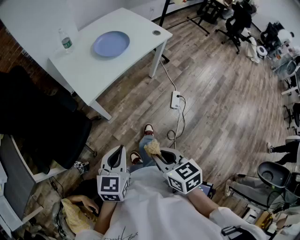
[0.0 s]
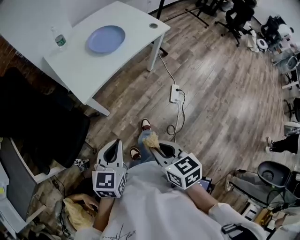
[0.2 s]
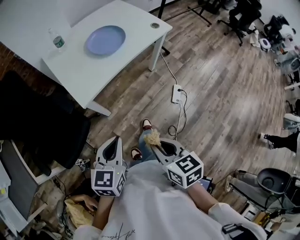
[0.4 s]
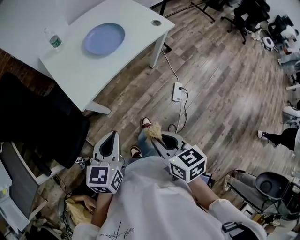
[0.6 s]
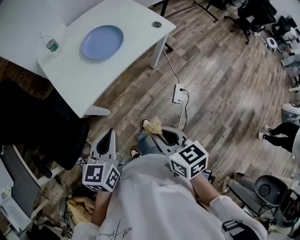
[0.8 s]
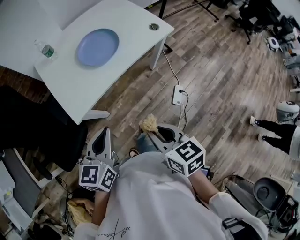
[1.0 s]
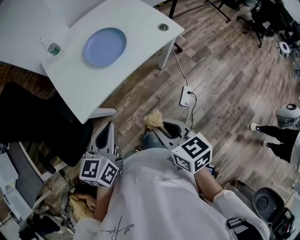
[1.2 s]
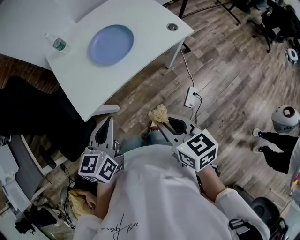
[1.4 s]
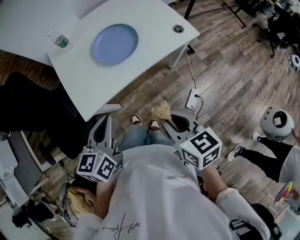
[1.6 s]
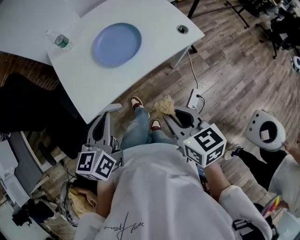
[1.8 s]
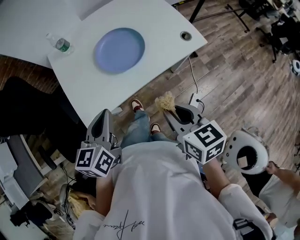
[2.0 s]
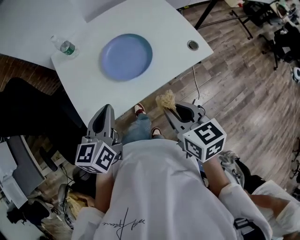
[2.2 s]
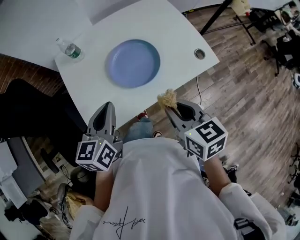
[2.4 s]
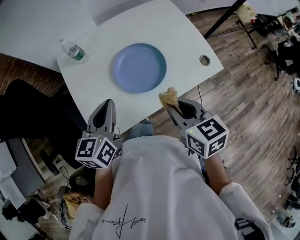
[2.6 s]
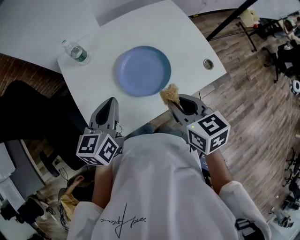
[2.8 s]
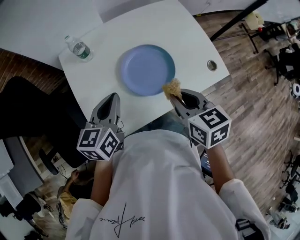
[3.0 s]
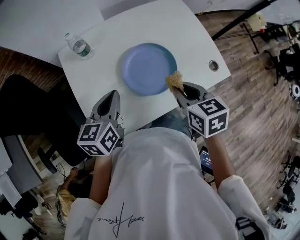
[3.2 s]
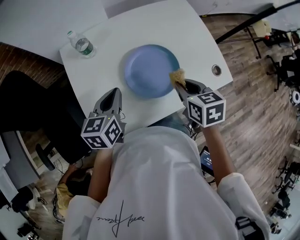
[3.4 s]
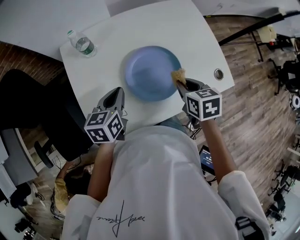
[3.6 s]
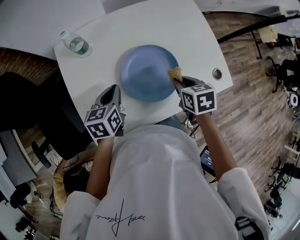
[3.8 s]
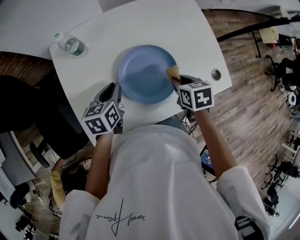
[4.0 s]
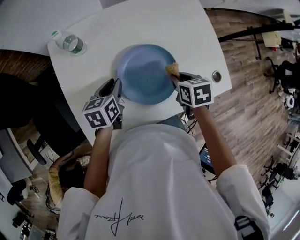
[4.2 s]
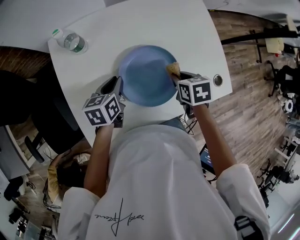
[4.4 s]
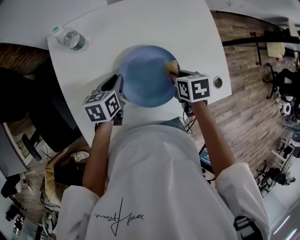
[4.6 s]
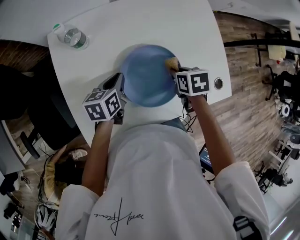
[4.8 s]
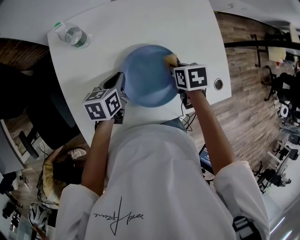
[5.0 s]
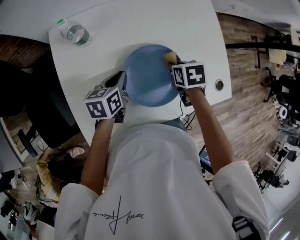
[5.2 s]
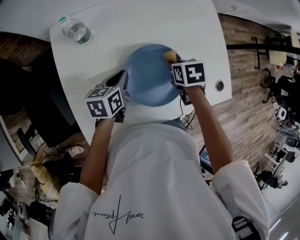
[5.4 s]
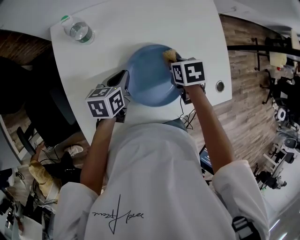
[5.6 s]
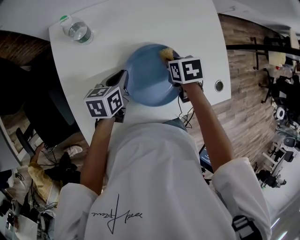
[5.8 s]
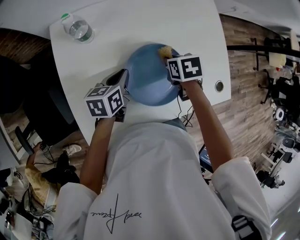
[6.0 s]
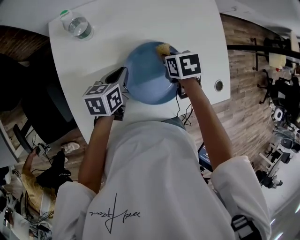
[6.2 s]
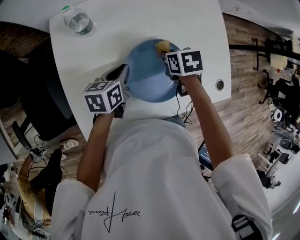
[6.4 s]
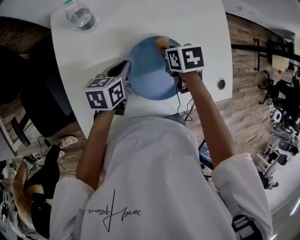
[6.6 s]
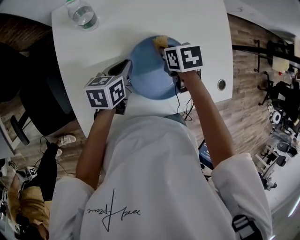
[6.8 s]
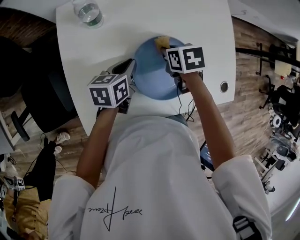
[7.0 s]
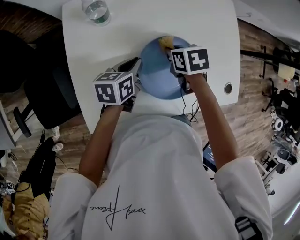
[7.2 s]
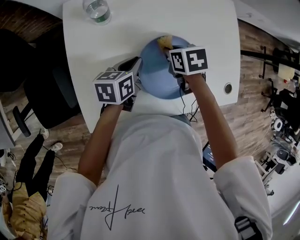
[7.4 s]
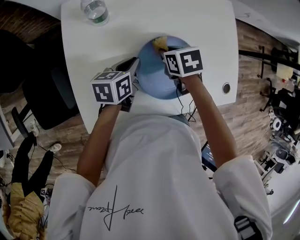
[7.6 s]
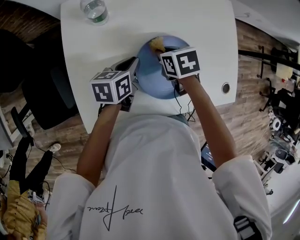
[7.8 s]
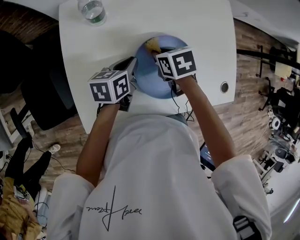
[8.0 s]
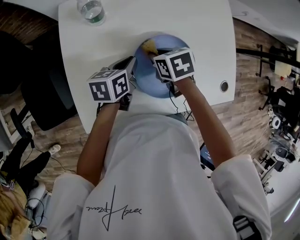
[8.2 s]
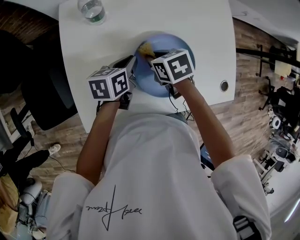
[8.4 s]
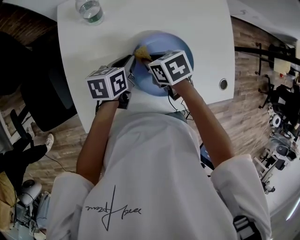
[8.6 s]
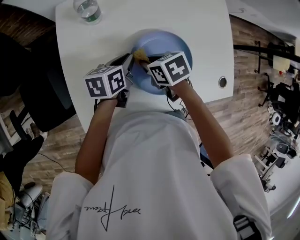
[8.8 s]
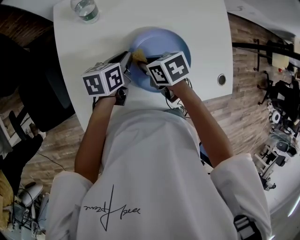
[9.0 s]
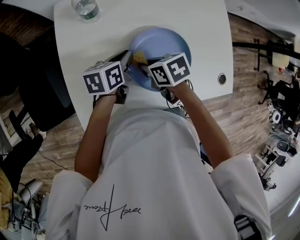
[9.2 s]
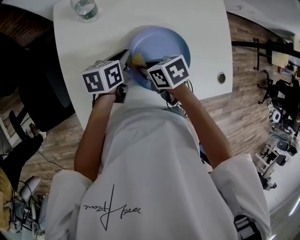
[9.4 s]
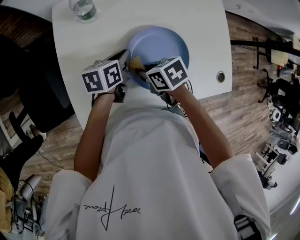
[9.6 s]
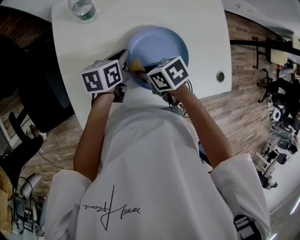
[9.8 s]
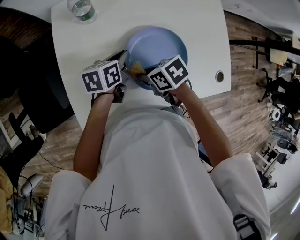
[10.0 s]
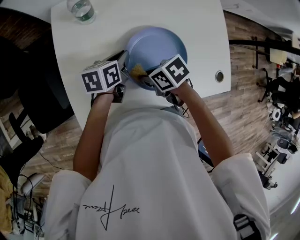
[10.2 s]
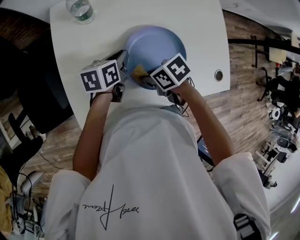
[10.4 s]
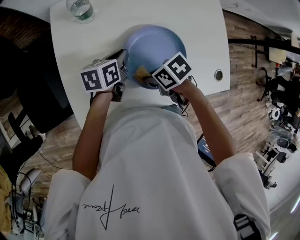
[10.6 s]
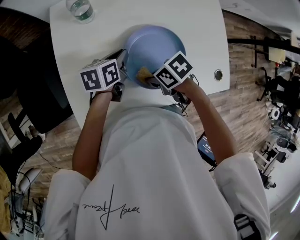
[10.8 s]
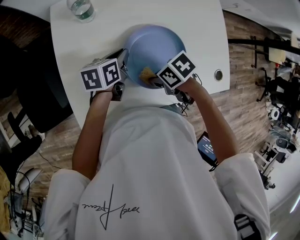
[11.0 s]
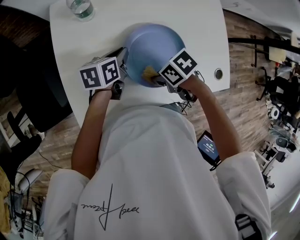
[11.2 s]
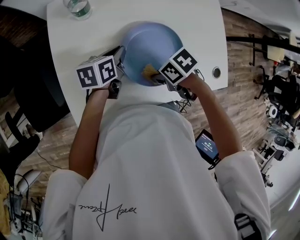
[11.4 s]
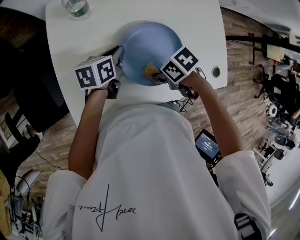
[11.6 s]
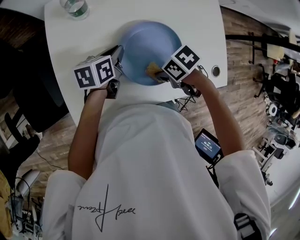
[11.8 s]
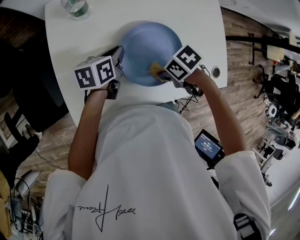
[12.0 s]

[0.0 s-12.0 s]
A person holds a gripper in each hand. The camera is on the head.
0.0 to 1.6 s: The right gripper travels forward and to the right by approximately 35 cm; the left gripper goes approximately 30 cm forward, and rotates roughly 20 degrees.
1.6 to 3.0 s: The grippers both shift forward by some 25 cm.
3.0 to 4.4 s: The two grippers go some 20 cm downward and forward. The right gripper turns by about 30 degrees. The left gripper turns by roughly 20 degrees.
4.4 to 6.0 s: The right gripper is displaced forward and to the left by about 10 cm.
6.0 to 7.6 s: The right gripper is displaced to the left by some 10 cm.
7.6 to 9.0 s: The right gripper goes some 10 cm backward and to the left.
9.0 to 10.4 s: The right gripper changes place by about 5 cm.
10.4 to 12.0 s: The right gripper changes place by some 10 cm.

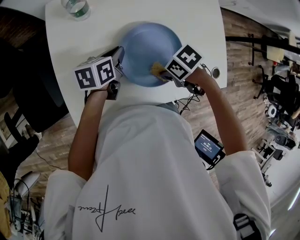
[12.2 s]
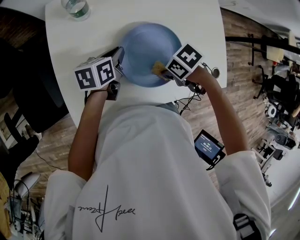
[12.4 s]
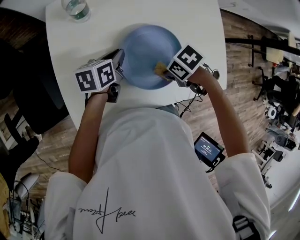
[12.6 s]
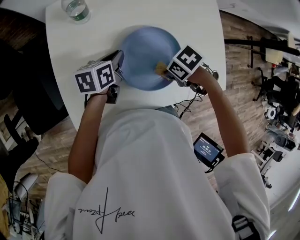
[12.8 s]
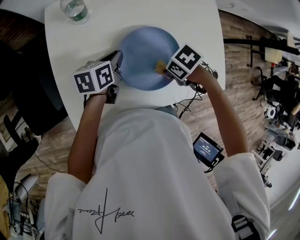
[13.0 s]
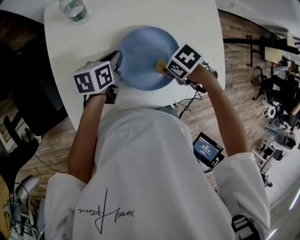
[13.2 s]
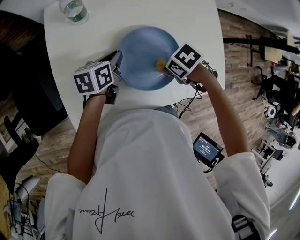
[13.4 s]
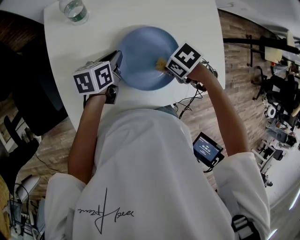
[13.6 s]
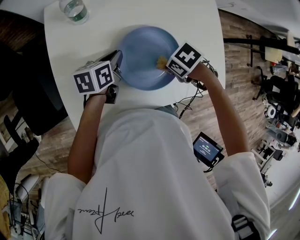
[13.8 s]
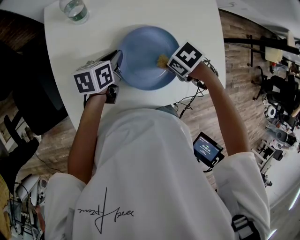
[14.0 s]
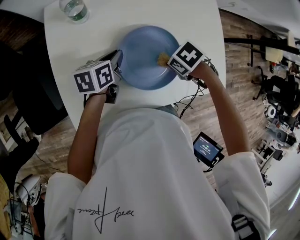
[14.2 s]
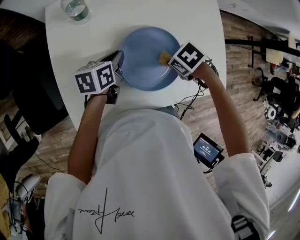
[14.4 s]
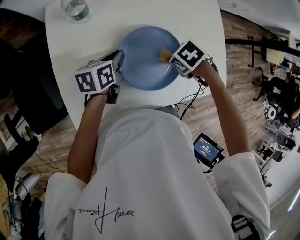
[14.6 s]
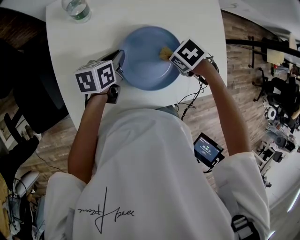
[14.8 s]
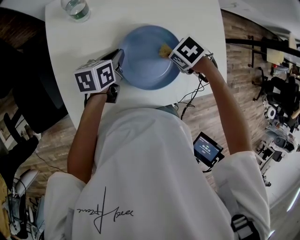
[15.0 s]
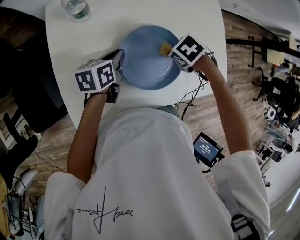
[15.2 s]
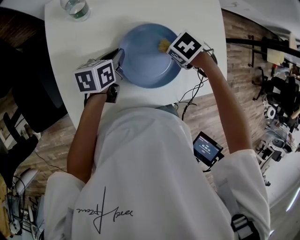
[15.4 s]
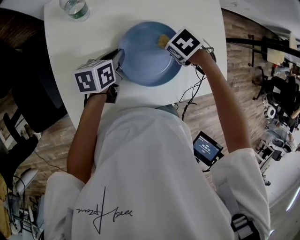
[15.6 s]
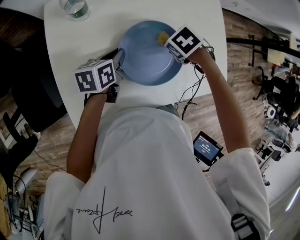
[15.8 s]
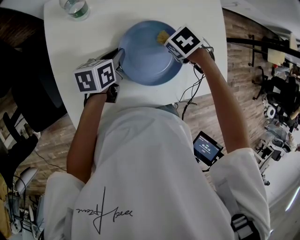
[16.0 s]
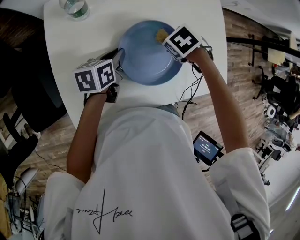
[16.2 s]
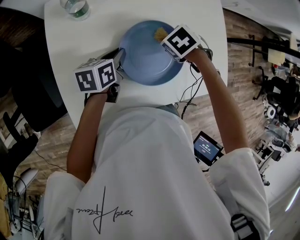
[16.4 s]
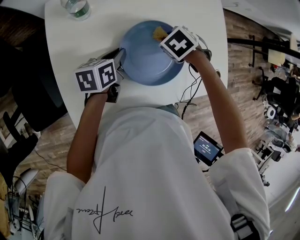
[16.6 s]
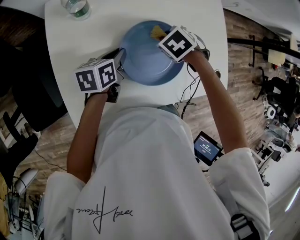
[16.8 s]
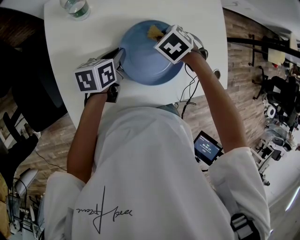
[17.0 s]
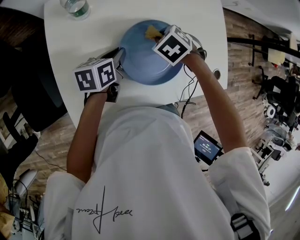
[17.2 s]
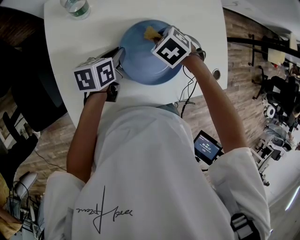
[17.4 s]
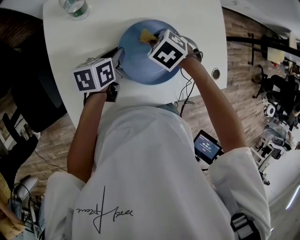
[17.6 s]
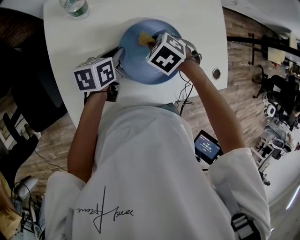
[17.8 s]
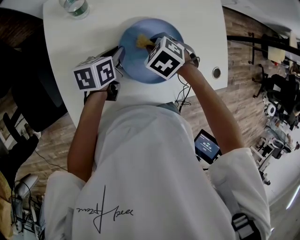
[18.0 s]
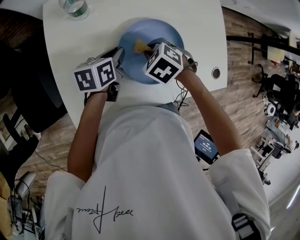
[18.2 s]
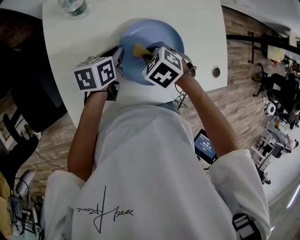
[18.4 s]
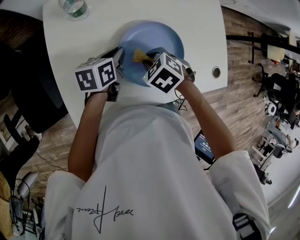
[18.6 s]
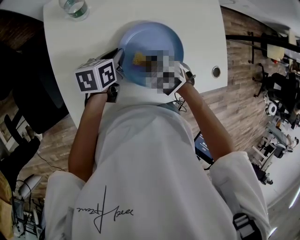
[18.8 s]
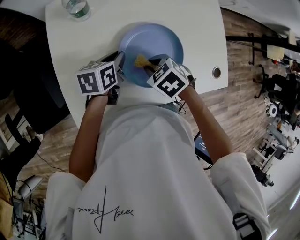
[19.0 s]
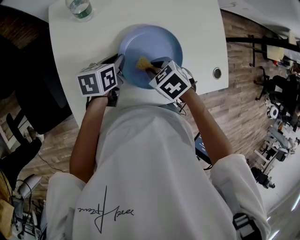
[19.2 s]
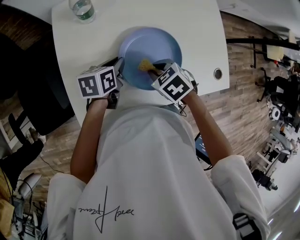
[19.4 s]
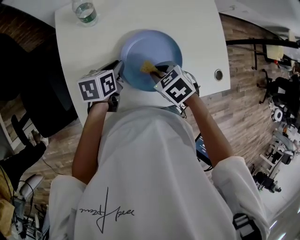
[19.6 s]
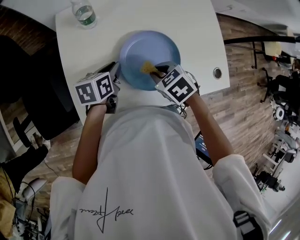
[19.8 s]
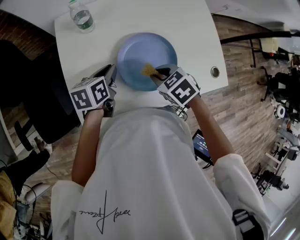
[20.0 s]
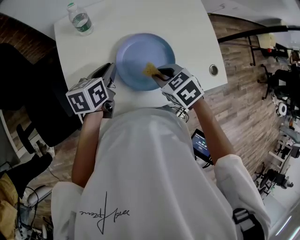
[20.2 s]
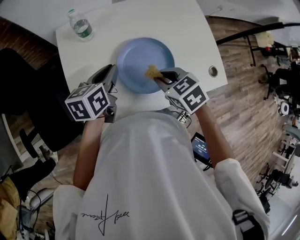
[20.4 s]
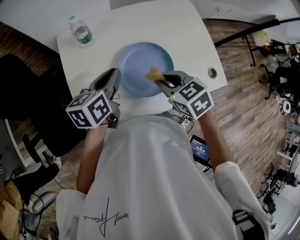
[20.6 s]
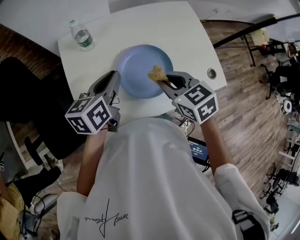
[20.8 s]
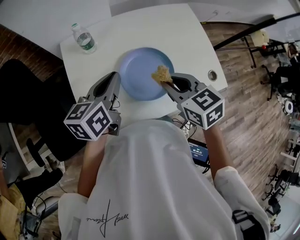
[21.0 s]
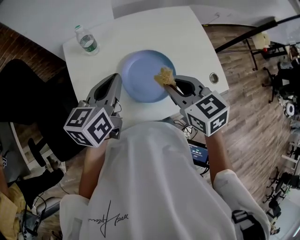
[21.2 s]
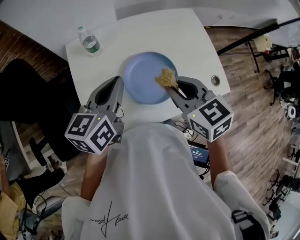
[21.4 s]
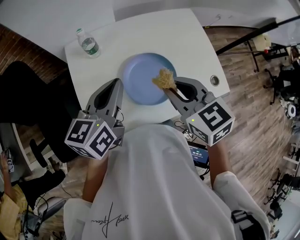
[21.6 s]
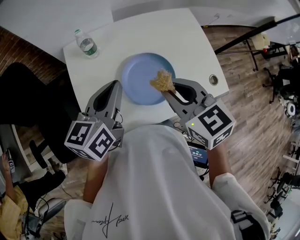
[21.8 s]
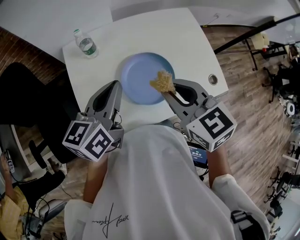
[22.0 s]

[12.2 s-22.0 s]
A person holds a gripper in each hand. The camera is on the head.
12.2 to 13.6 s: The right gripper shifts by some 5 cm.
13.6 to 15.0 s: The right gripper moves some 5 cm.
15.0 to 16.4 s: The right gripper shifts by roughly 5 cm.
16.4 to 17.8 s: The right gripper ends up some 5 cm from where it was.
17.8 to 19.2 s: The right gripper changes place by approximately 10 cm.
19.2 to 20.6 s: The grippers both shift upward by about 15 cm. The right gripper changes its angle by about 30 degrees.
20.6 to 22.0 s: Both grippers move upward, approximately 10 cm. The right gripper swivels roughly 20 degrees.

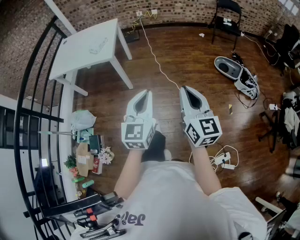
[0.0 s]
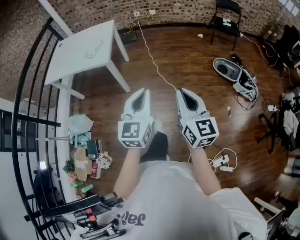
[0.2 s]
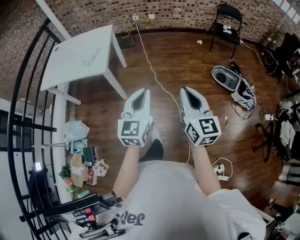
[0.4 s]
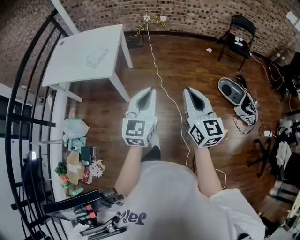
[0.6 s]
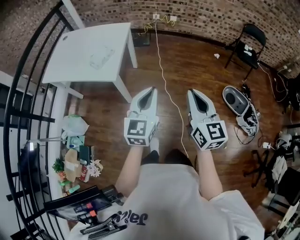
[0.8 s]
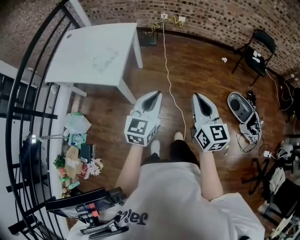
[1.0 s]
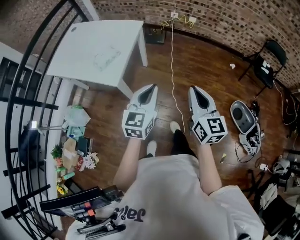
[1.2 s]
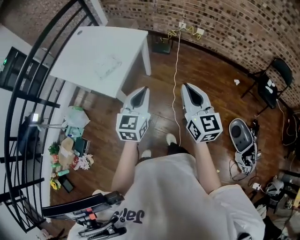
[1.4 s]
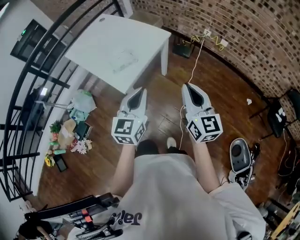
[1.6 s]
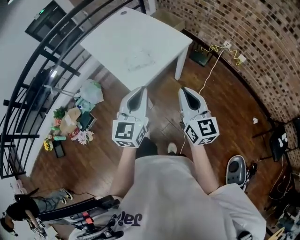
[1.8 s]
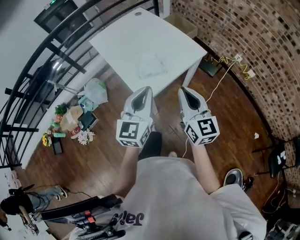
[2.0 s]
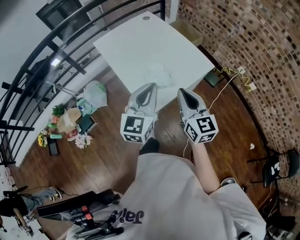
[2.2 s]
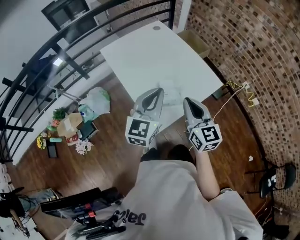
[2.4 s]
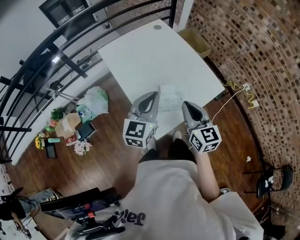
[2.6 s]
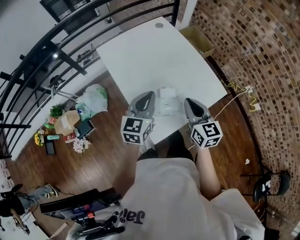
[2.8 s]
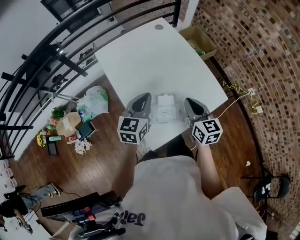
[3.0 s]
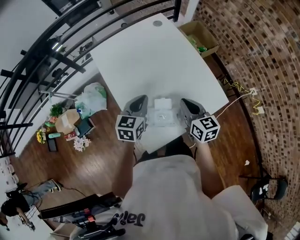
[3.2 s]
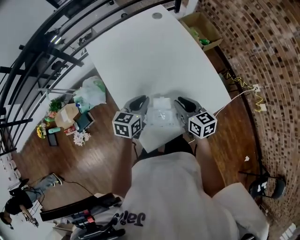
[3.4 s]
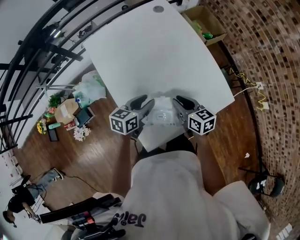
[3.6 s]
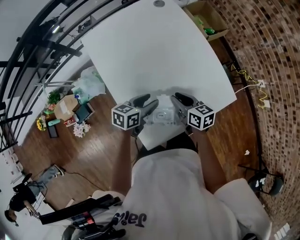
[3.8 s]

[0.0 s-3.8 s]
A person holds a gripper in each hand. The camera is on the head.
0.0 to 1.2 s: Both grippers are carried forward, about 50 cm.
1.2 to 2.6 s: The pair of grippers is taken some 50 cm. The right gripper rotates some 50 degrees. The left gripper rotates about 40 degrees.
2.6 to 3.8 s: Both grippers move downward and forward, approximately 25 cm. The left gripper rotates some 50 degrees, and opens its fingers; the right gripper swivels about 40 degrees.
